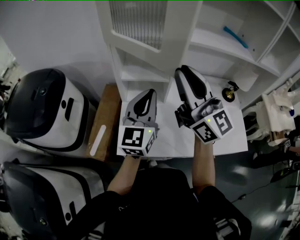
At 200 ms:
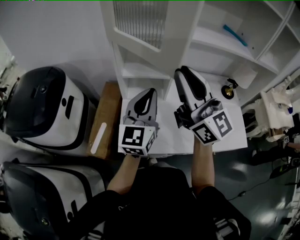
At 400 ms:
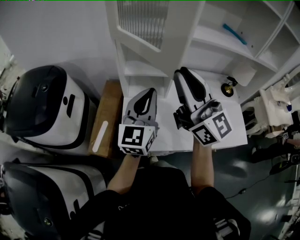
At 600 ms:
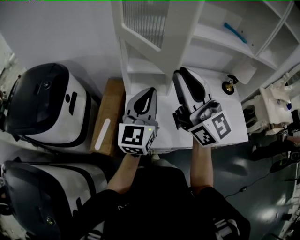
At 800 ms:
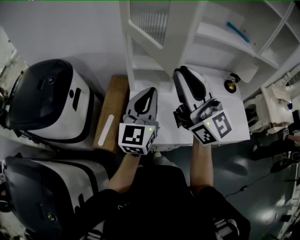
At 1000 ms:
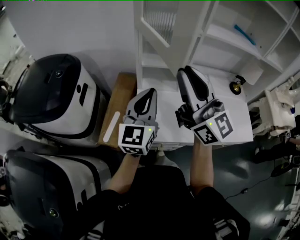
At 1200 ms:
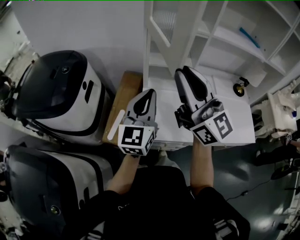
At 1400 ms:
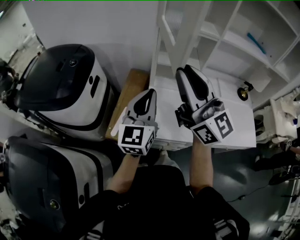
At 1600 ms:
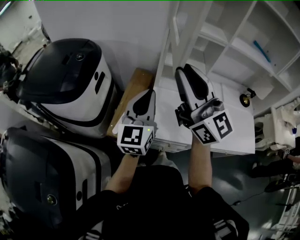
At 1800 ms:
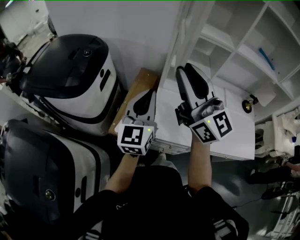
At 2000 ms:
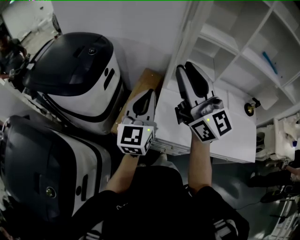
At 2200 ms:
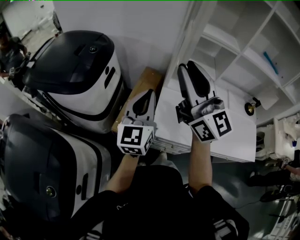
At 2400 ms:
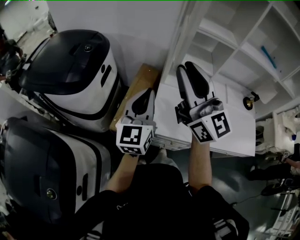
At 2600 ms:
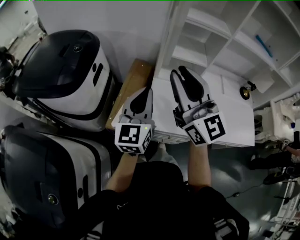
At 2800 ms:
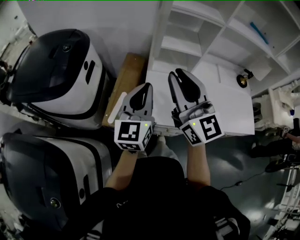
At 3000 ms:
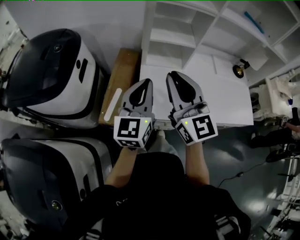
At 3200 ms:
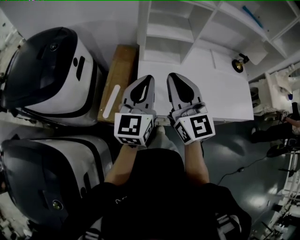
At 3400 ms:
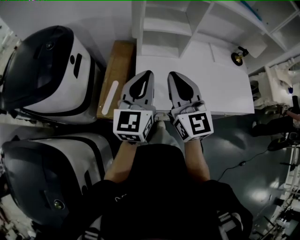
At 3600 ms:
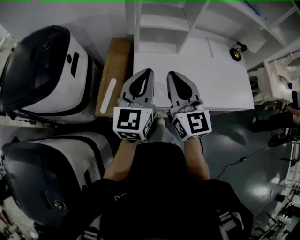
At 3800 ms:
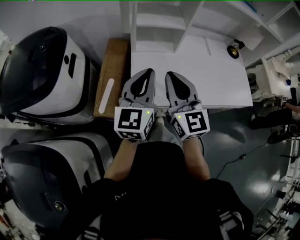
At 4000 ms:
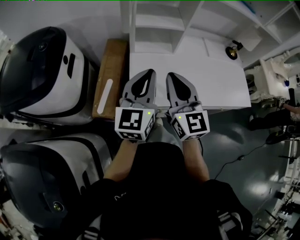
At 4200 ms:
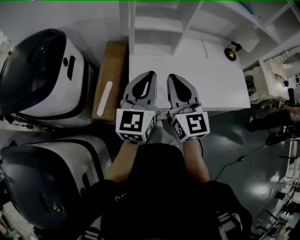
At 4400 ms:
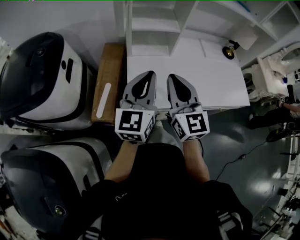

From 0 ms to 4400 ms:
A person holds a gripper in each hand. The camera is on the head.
From 0 ms to 1400 ms: The grippers both shift to the left by some 20 cm.
From 1400 ms to 3000 ms: The right gripper is displaced downward by some 10 cm, and changes its angle by roughly 30 degrees, while the left gripper travels to the left and back again, some 10 cm each way.
From 3000 ms to 4400 ms: The left gripper travels to the right by approximately 5 cm; the right gripper travels downward and to the right by about 10 cm.

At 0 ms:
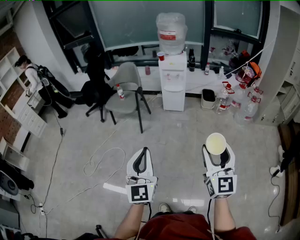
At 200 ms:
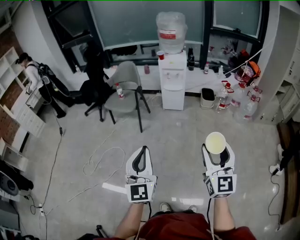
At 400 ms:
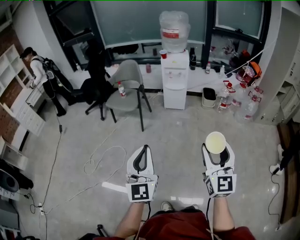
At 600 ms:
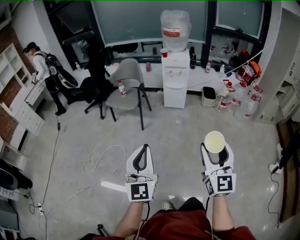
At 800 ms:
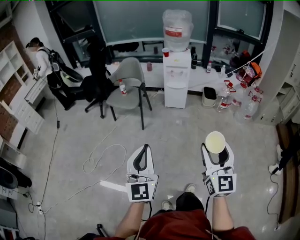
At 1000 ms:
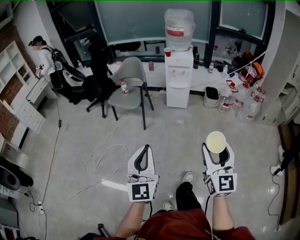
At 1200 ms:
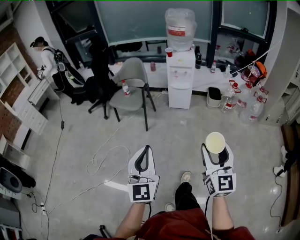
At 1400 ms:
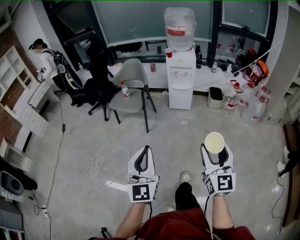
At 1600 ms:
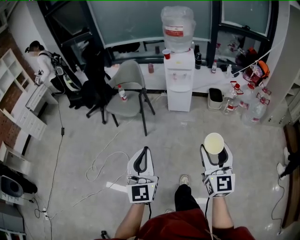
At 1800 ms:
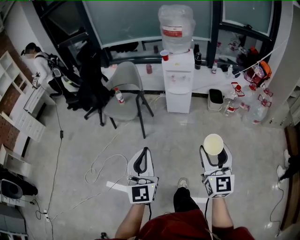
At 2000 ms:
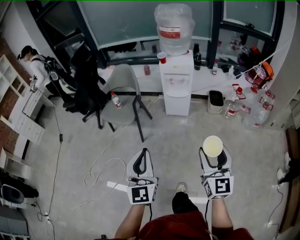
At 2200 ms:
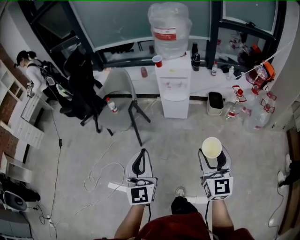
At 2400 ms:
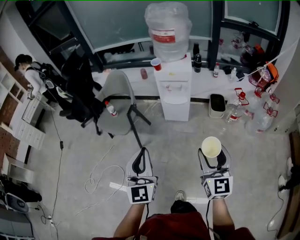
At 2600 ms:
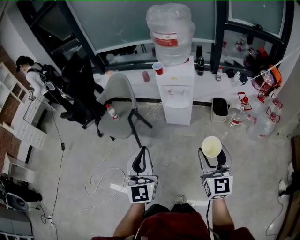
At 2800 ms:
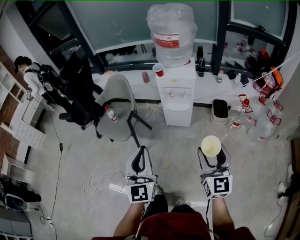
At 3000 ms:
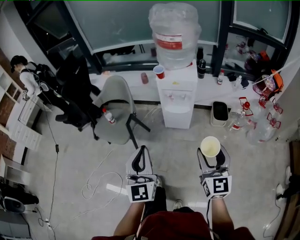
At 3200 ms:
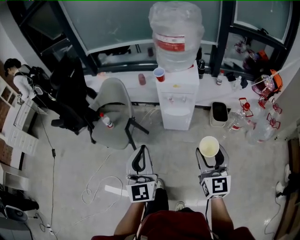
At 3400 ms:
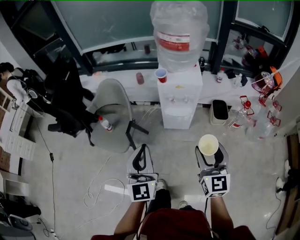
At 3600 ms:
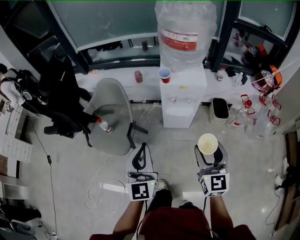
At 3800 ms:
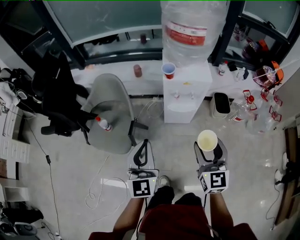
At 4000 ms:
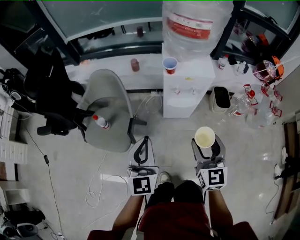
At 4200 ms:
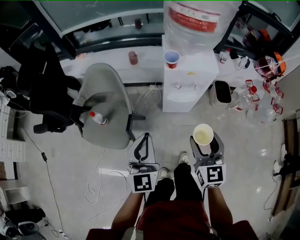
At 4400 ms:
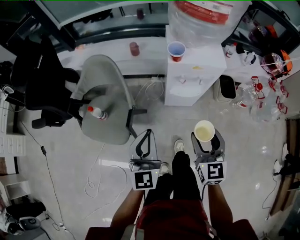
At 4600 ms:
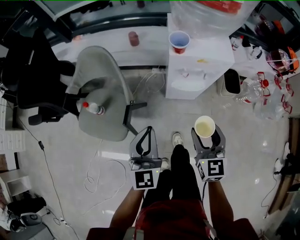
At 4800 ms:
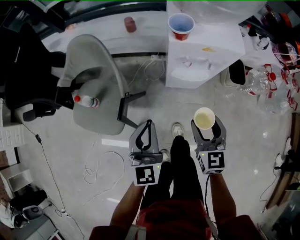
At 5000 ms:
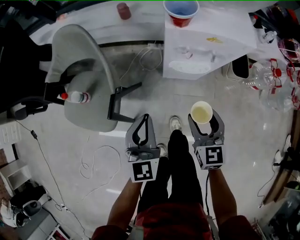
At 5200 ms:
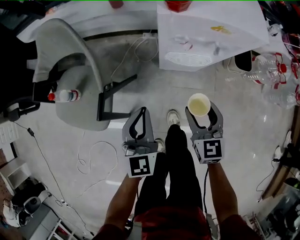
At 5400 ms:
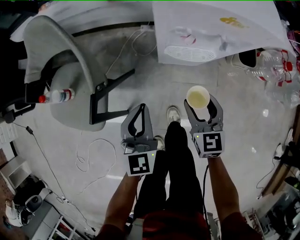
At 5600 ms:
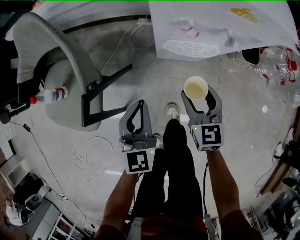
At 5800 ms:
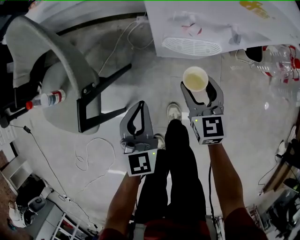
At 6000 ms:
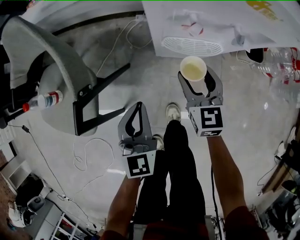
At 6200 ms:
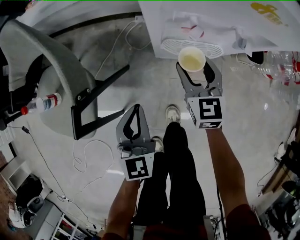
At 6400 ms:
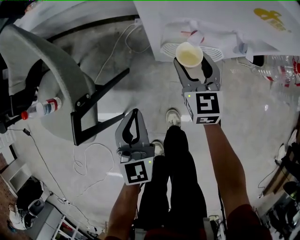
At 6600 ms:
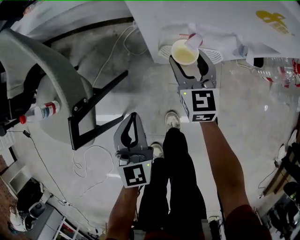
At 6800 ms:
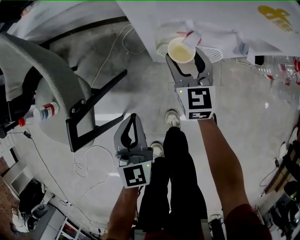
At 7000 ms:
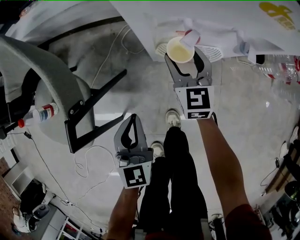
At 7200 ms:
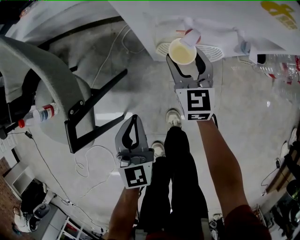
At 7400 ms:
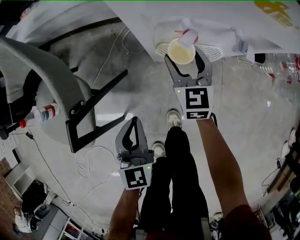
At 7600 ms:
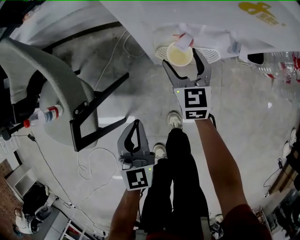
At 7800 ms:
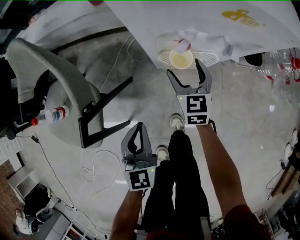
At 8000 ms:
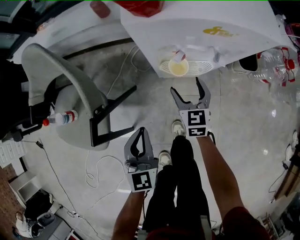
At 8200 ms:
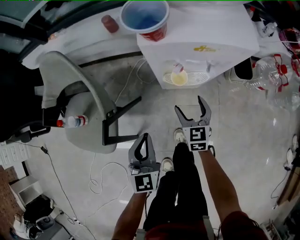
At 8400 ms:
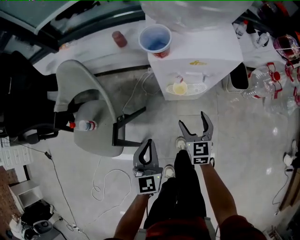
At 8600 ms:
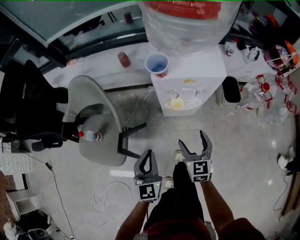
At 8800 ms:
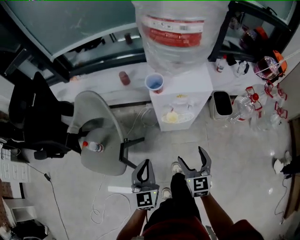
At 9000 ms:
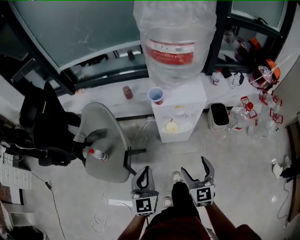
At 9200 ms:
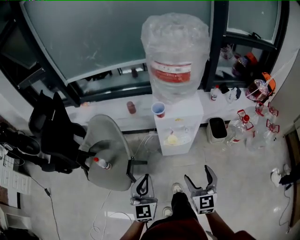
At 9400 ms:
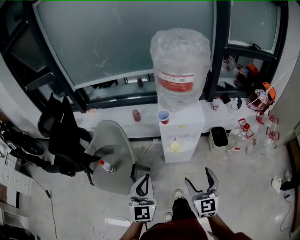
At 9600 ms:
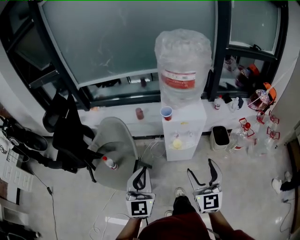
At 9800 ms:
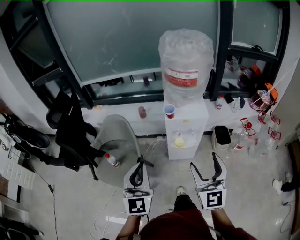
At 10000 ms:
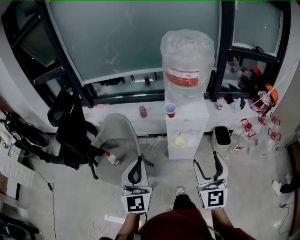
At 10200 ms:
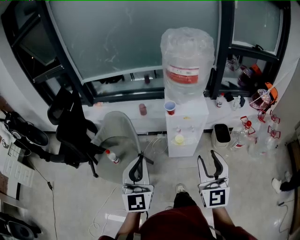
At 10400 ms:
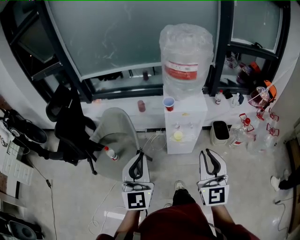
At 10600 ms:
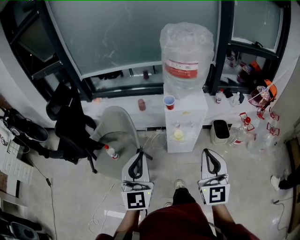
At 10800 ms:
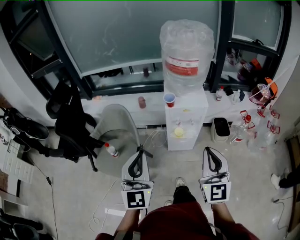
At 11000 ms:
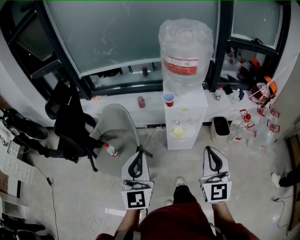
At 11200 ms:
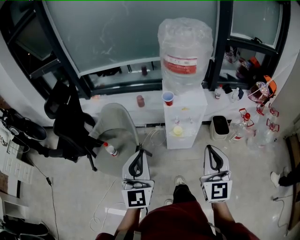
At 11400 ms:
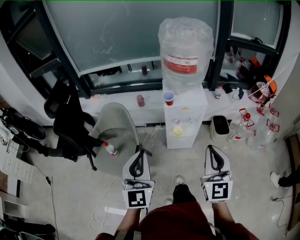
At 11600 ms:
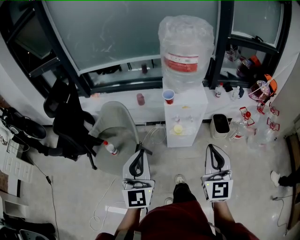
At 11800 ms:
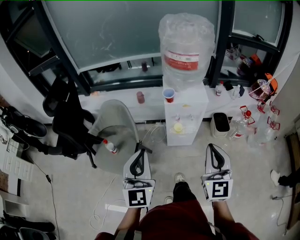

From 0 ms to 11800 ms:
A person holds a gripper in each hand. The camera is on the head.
From 0 ms to 1400 ms: The two grippers go roughly 10 cm forward and to the left.
From 1400 ms to 3000 ms: The pair of grippers is taken forward, about 40 cm.
From 3000 ms to 4400 ms: The right gripper goes approximately 30 cm forward, to the left and downward. Meanwhile the left gripper shifts some 30 cm forward, downward and to the left.
From 4400 ms to 6000 ms: The right gripper travels downward and forward by about 40 cm. The left gripper moves downward, approximately 35 cm.
From 6000 ms to 7400 ms: The right gripper heads forward, covering some 10 cm.
From 7400 ms to 8800 ms: The right gripper shifts approximately 40 cm upward and backward. The left gripper heads upward, covering roughly 30 cm.
From 8800 ms to 10400 ms: Both grippers move upward, roughly 30 cm. The right gripper changes its angle by roughly 30 degrees, and closes. The left gripper swivels some 20 degrees.
From 10400 ms to 11800 ms: There are only small adjustments of the grippers.

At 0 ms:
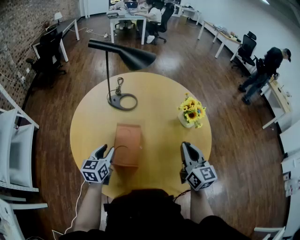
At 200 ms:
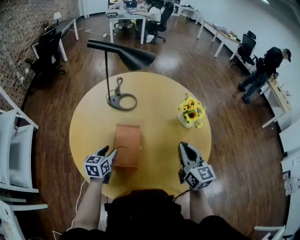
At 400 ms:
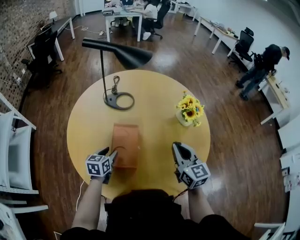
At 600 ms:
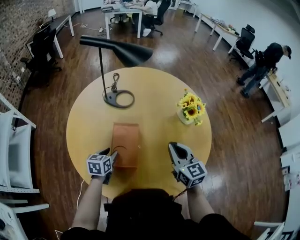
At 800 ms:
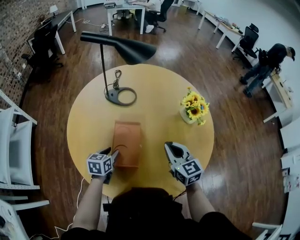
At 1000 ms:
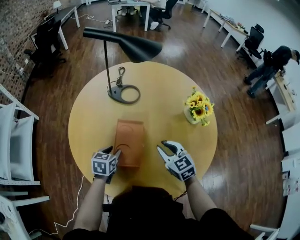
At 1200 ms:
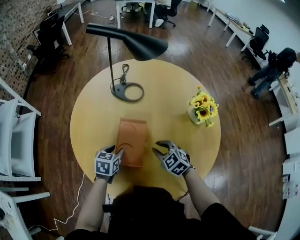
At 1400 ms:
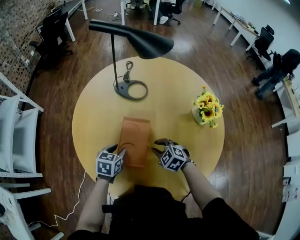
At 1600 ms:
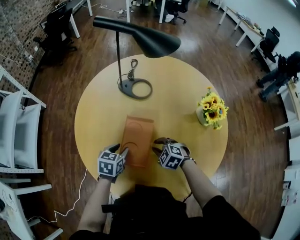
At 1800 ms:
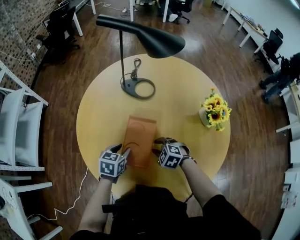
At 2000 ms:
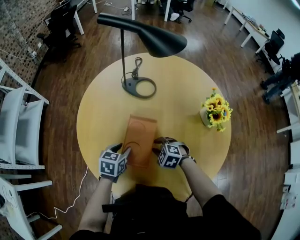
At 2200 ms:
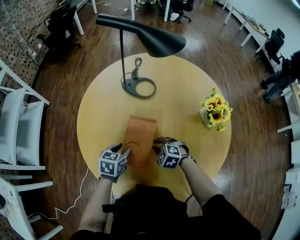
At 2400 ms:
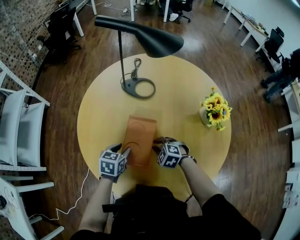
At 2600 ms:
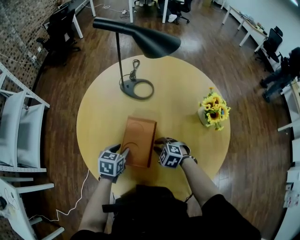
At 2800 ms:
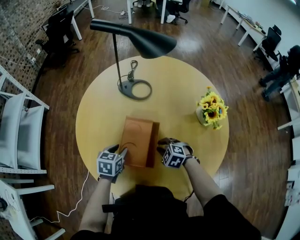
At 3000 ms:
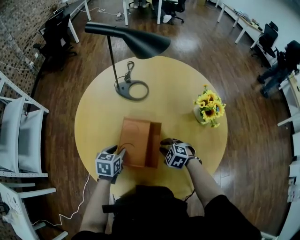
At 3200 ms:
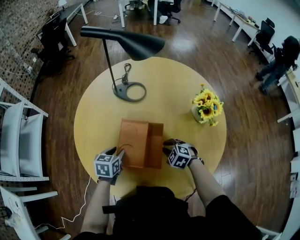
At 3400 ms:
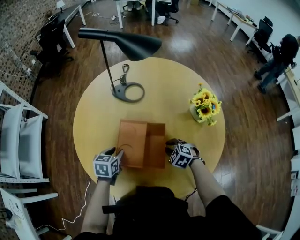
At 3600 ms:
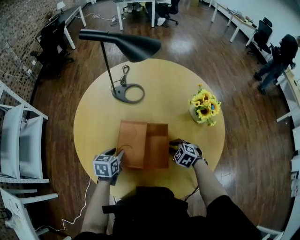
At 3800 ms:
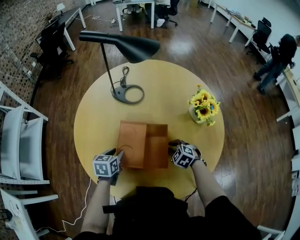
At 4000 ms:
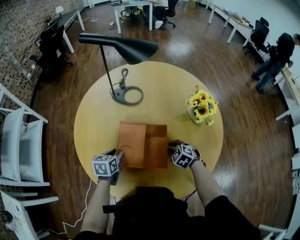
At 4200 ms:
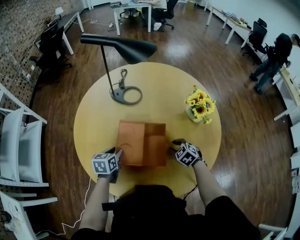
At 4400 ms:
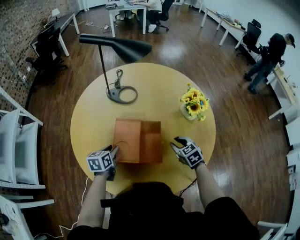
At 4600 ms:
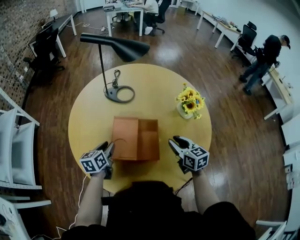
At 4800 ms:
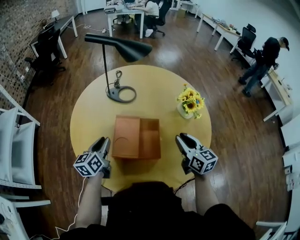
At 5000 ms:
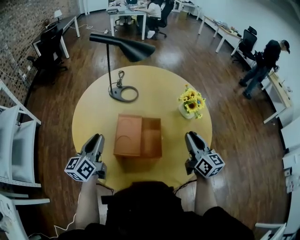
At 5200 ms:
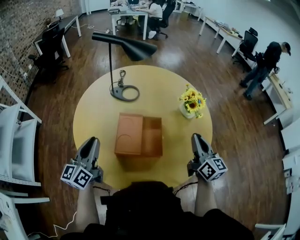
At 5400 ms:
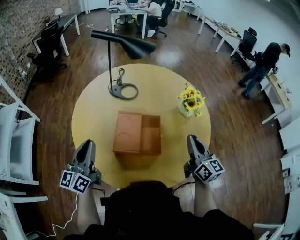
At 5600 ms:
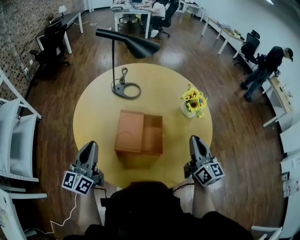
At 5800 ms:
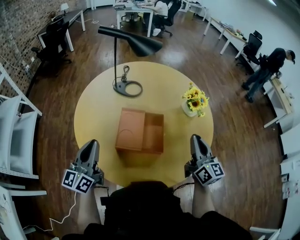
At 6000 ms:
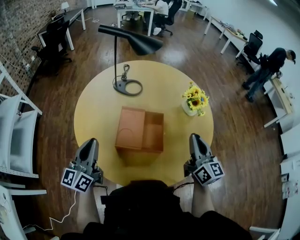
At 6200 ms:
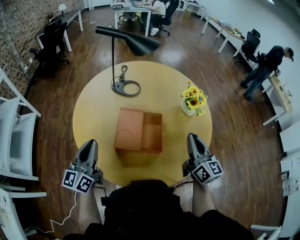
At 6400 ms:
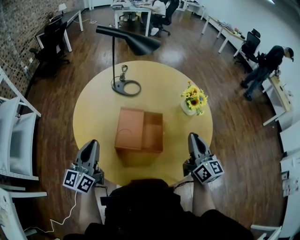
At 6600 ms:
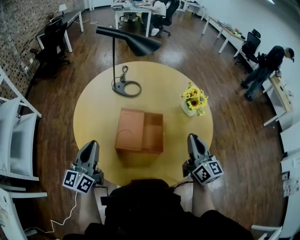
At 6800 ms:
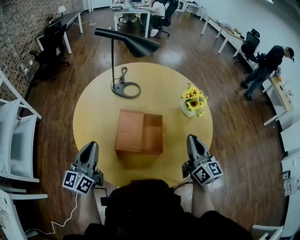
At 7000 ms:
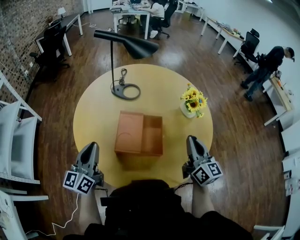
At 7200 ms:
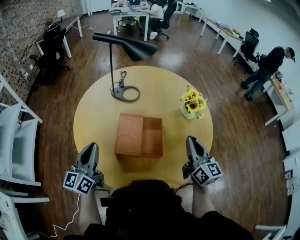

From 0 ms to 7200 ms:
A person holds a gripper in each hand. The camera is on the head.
From 0 ms to 1400 ms: The left gripper travels downward by about 10 cm, and turns by about 20 degrees, while the right gripper is displaced downward and to the left by approximately 25 cm, angles its fingers downward, by some 50 degrees, and opens up.
From 1400 ms to 2800 ms: The grippers make only small movements.
From 2800 ms to 4400 ms: The right gripper heads to the right, covering approximately 15 cm, and swivels roughly 40 degrees.
From 4400 ms to 5800 ms: The two grippers go about 25 cm upward and backward. The right gripper tilts its fingers some 50 degrees upward, and closes up. Meanwhile the left gripper angles its fingers upward, by roughly 40 degrees, and closes up.
From 5800 ms to 7200 ms: The grippers stay close to where they were, moving slightly.
